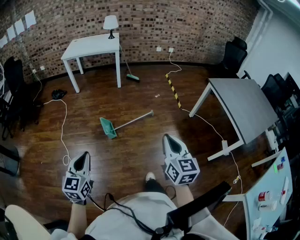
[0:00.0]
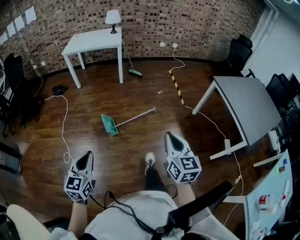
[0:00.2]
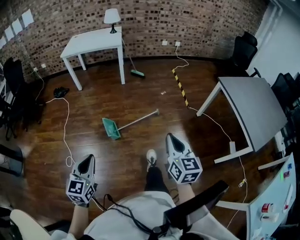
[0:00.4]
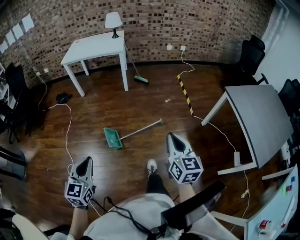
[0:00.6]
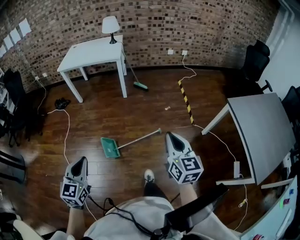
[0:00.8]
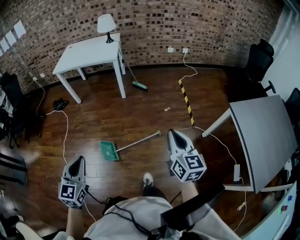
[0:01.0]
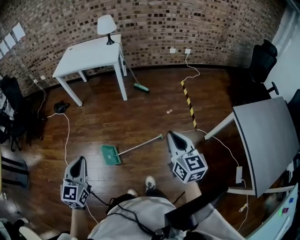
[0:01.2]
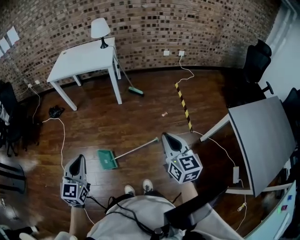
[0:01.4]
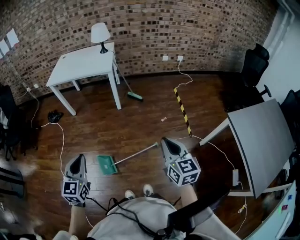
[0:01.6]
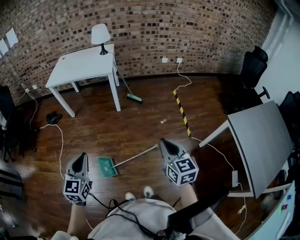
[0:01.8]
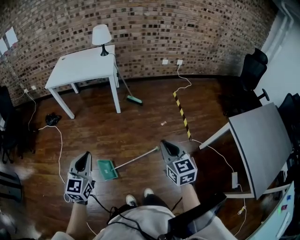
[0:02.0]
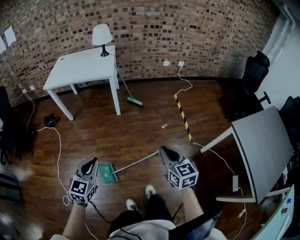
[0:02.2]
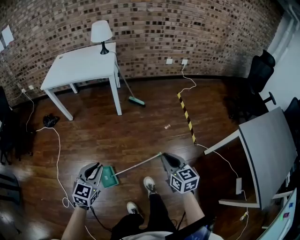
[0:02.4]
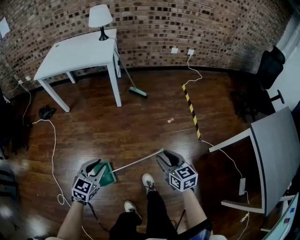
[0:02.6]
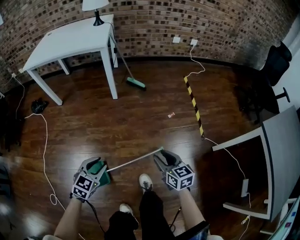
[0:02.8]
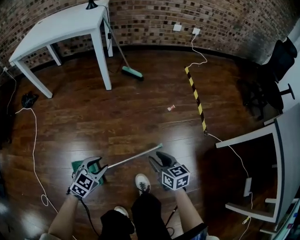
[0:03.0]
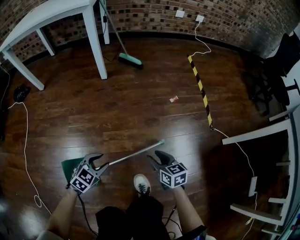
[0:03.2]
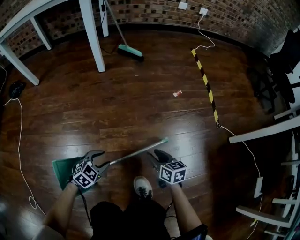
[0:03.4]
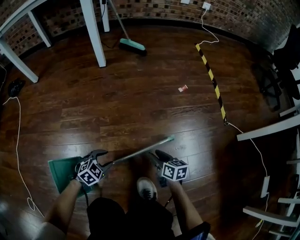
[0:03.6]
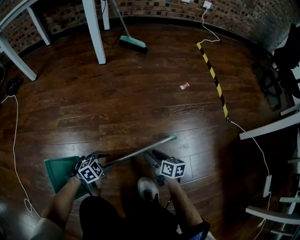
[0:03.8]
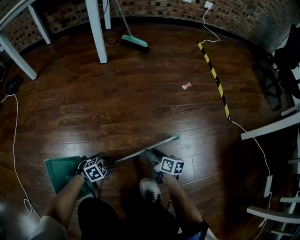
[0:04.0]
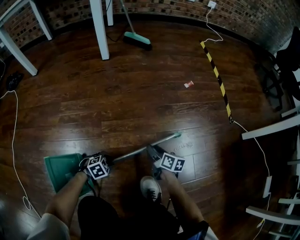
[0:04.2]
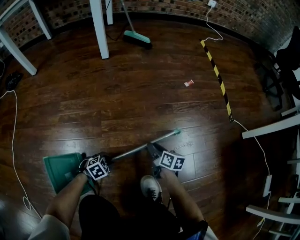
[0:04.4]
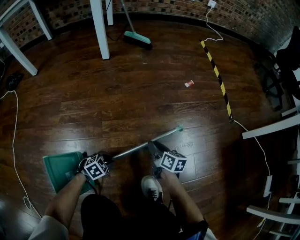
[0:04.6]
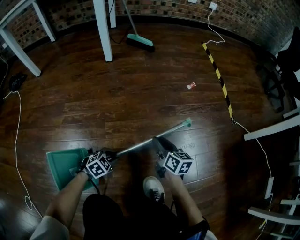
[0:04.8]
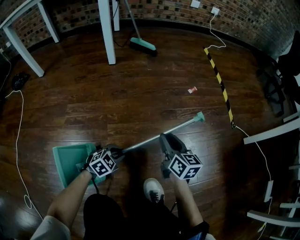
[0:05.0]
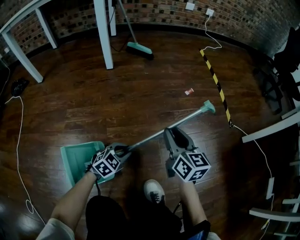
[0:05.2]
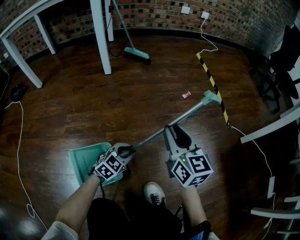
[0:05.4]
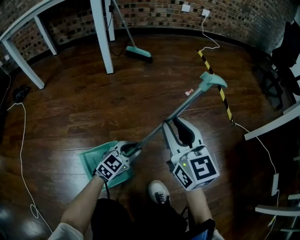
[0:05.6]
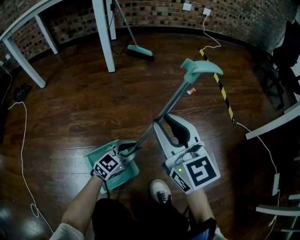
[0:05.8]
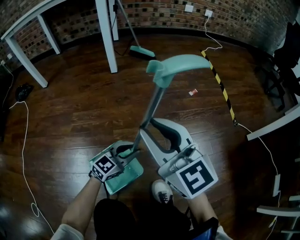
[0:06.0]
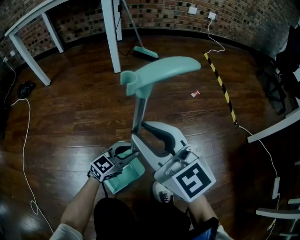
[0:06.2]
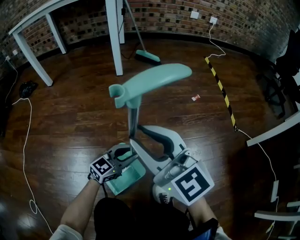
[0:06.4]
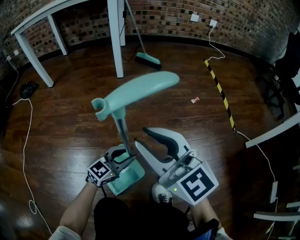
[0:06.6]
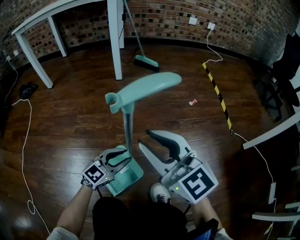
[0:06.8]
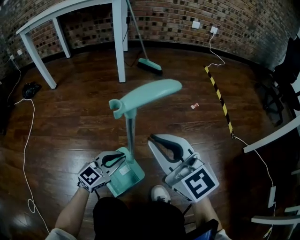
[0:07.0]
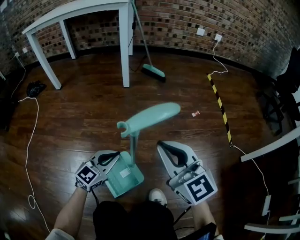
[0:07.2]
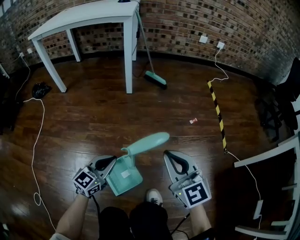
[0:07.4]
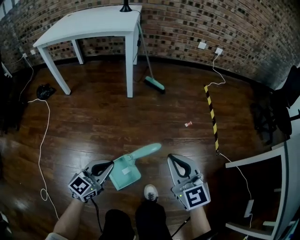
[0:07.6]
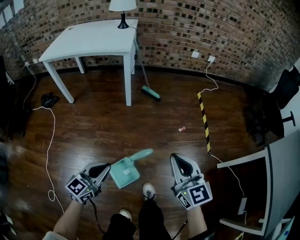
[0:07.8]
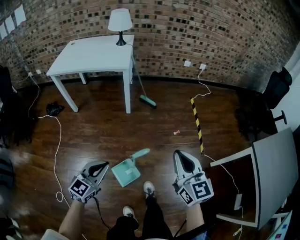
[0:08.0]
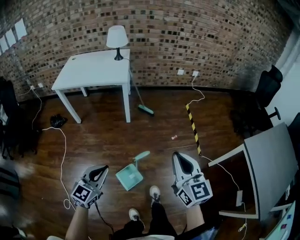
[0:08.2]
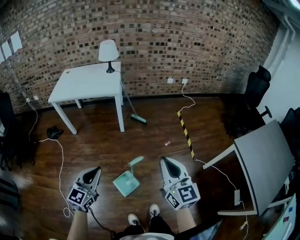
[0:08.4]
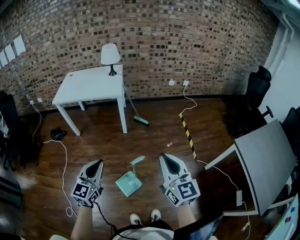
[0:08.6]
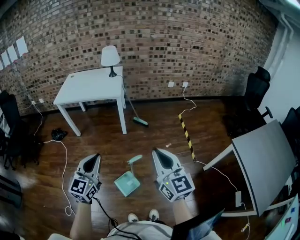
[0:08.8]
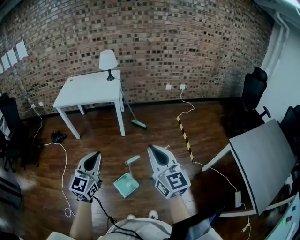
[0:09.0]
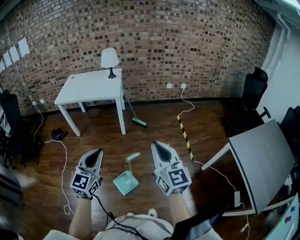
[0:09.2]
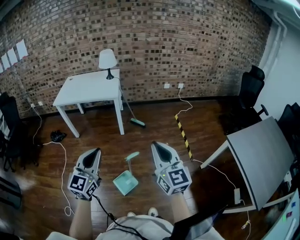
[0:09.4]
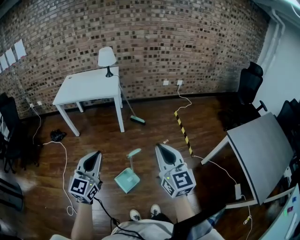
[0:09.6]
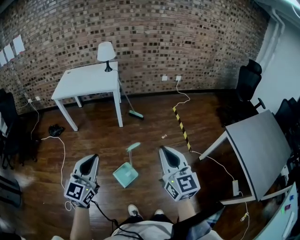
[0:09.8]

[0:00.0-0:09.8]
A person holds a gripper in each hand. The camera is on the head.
0:00.0 to 0:01.4: Both grippers are carried forward, approximately 50 cm.
0:01.4 to 0:02.8: The two grippers go roughly 40 cm downward and forward. The right gripper swivels about 20 degrees, and opens up. Meanwhile the left gripper swivels about 30 degrees, and opens.
0:02.8 to 0:04.2: Both grippers move downward, some 60 cm. The left gripper angles its fingers downward, by about 30 degrees; the right gripper swivels some 40 degrees.
0:04.2 to 0:05.6: The right gripper heads upward, covering about 35 cm, and twists about 50 degrees counterclockwise, seen from behind, while the left gripper moves upward and forward, roughly 25 cm, and points its fingers roughly 40 degrees further upward.
0:05.6 to 0:07.0: The right gripper travels to the left, backward and upward by some 15 cm, and rotates some 30 degrees. The left gripper travels upward, to the left and backward by some 15 cm.
0:07.0 to 0:08.4: Both grippers travel together upward, approximately 60 cm. The right gripper changes its angle by approximately 30 degrees; the left gripper turns by some 20 degrees.
0:08.4 to 0:09.8: The right gripper heads backward and upward, covering roughly 10 cm, while the left gripper shifts some 15 cm upward and backward.

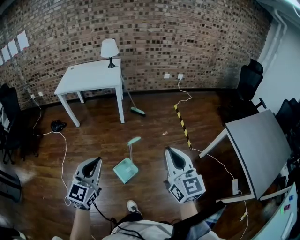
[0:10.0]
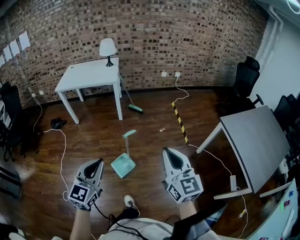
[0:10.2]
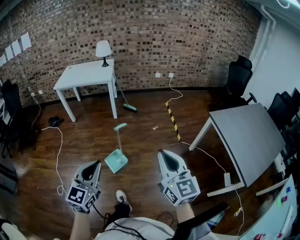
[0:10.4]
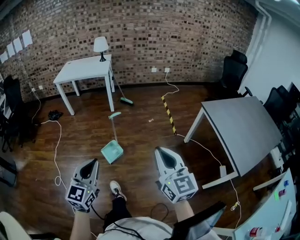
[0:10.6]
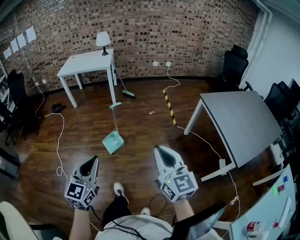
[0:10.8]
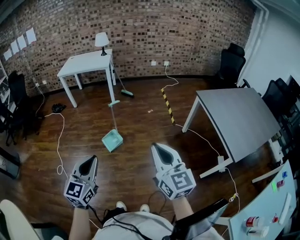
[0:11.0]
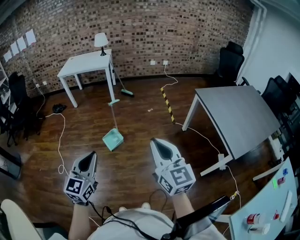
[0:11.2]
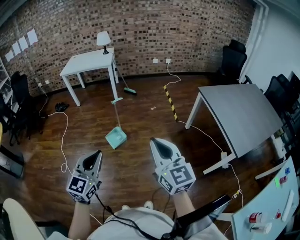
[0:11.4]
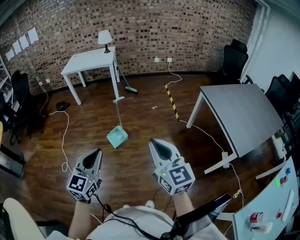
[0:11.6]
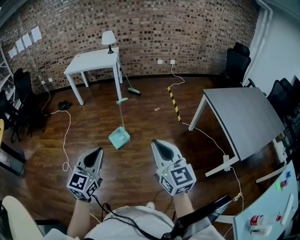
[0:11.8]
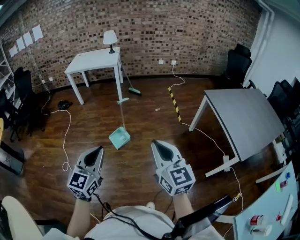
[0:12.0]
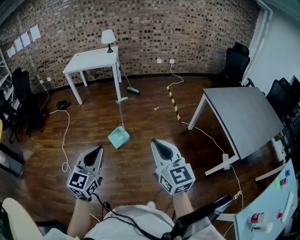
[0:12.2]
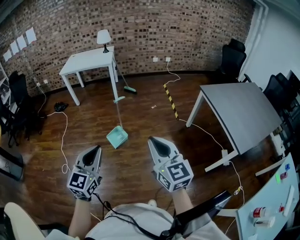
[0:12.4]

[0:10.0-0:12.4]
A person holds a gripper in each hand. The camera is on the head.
0:10.0 to 0:11.2: Both grippers are carried backward and to the right, roughly 40 cm.
0:11.2 to 0:12.4: The right gripper travels to the left by about 5 cm.

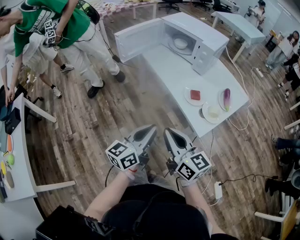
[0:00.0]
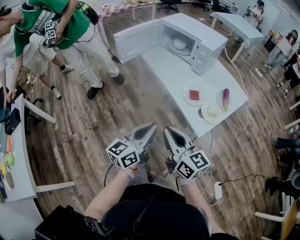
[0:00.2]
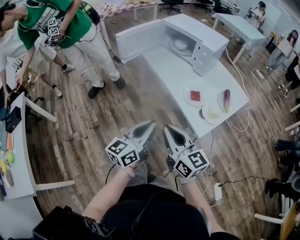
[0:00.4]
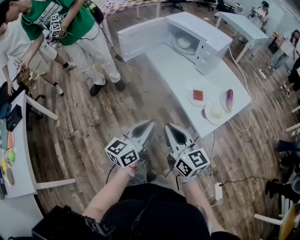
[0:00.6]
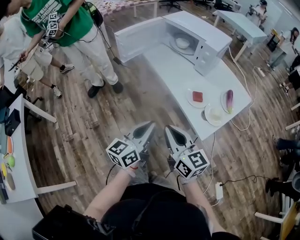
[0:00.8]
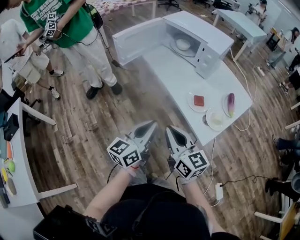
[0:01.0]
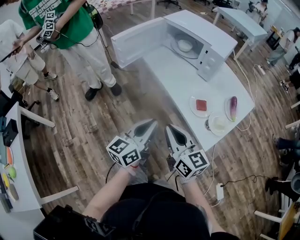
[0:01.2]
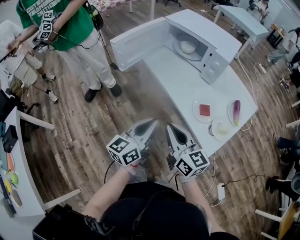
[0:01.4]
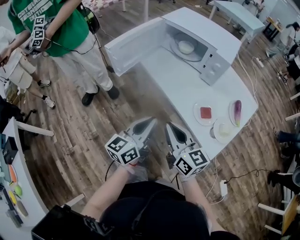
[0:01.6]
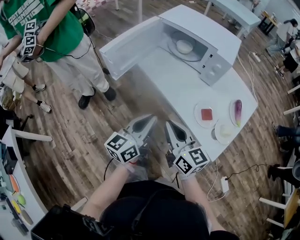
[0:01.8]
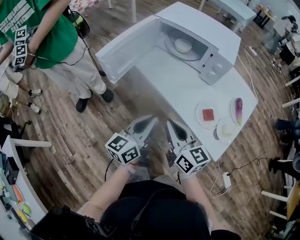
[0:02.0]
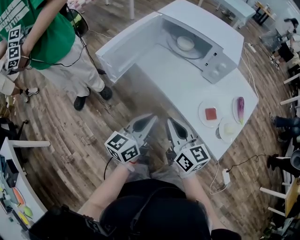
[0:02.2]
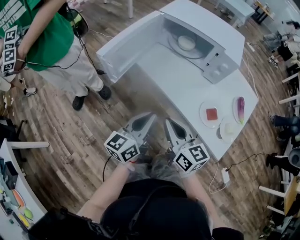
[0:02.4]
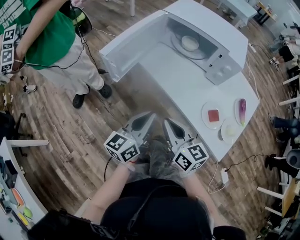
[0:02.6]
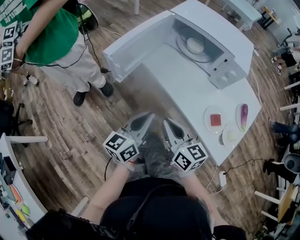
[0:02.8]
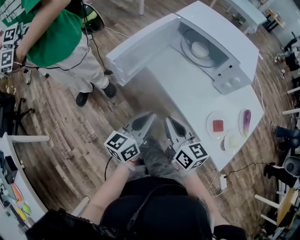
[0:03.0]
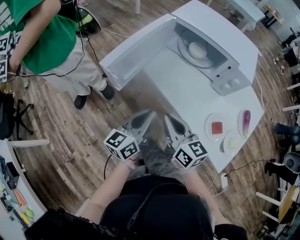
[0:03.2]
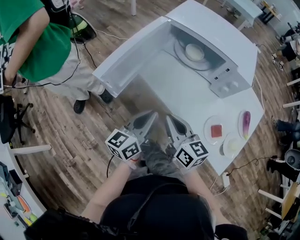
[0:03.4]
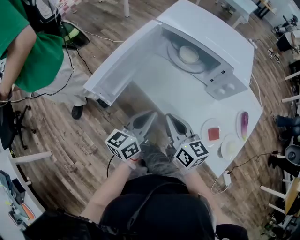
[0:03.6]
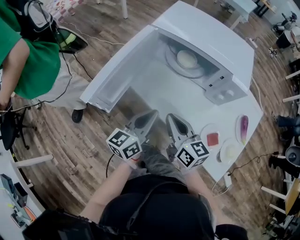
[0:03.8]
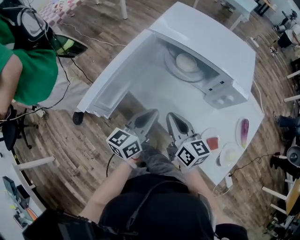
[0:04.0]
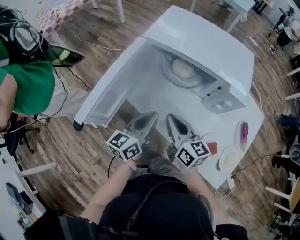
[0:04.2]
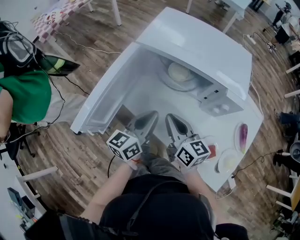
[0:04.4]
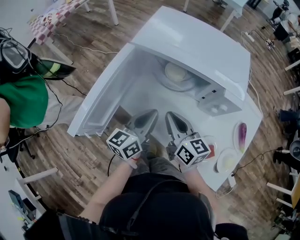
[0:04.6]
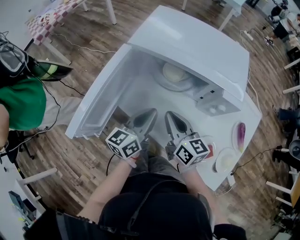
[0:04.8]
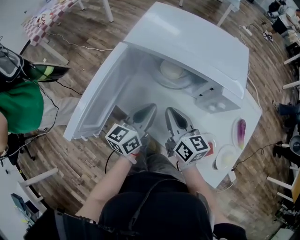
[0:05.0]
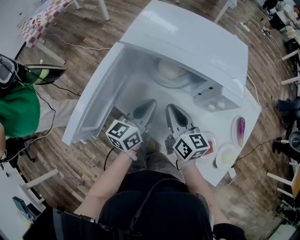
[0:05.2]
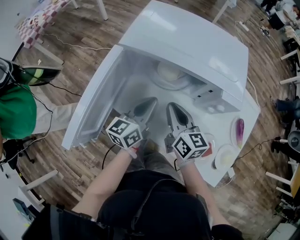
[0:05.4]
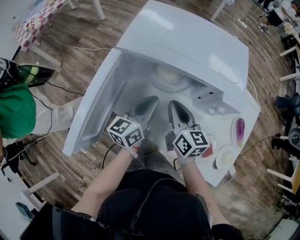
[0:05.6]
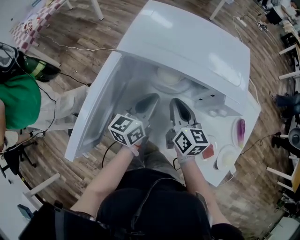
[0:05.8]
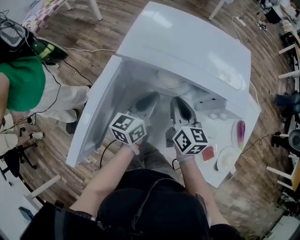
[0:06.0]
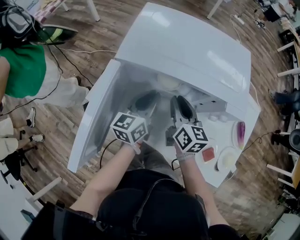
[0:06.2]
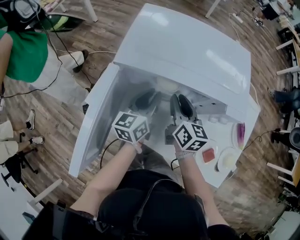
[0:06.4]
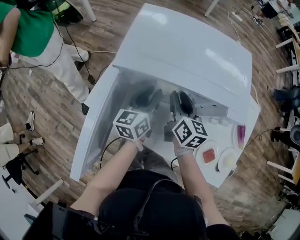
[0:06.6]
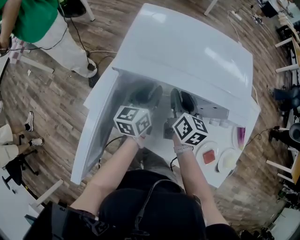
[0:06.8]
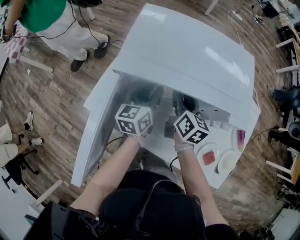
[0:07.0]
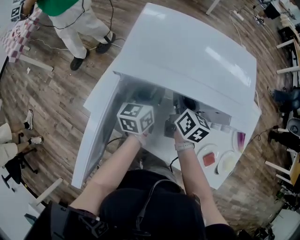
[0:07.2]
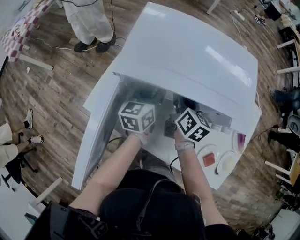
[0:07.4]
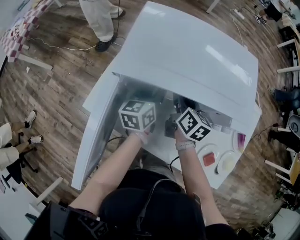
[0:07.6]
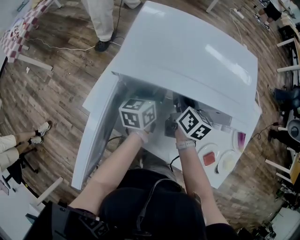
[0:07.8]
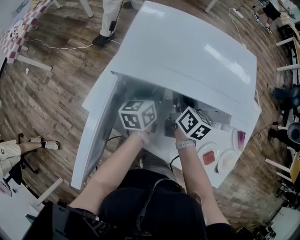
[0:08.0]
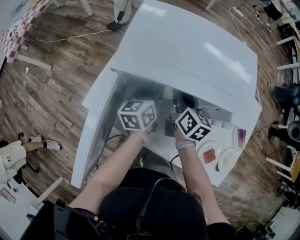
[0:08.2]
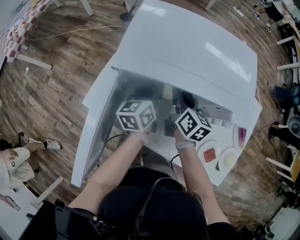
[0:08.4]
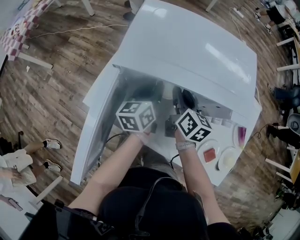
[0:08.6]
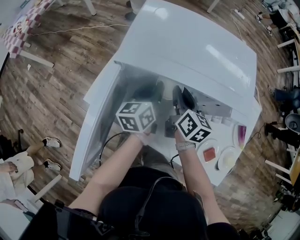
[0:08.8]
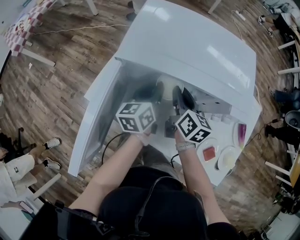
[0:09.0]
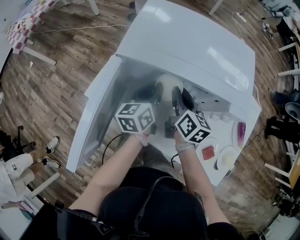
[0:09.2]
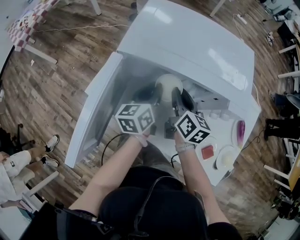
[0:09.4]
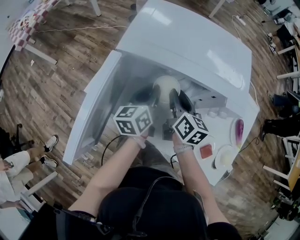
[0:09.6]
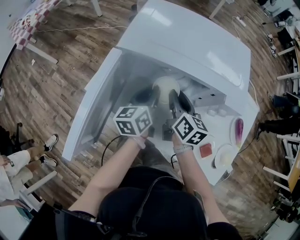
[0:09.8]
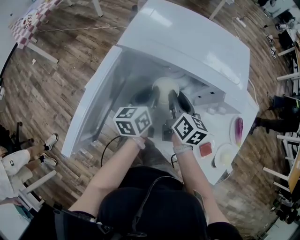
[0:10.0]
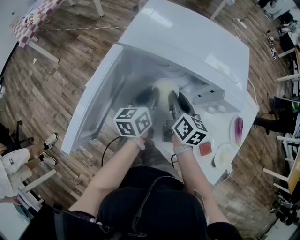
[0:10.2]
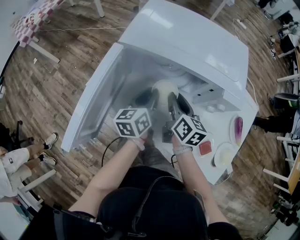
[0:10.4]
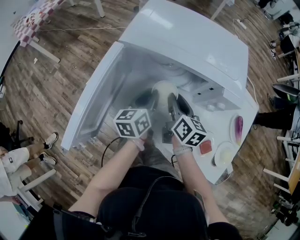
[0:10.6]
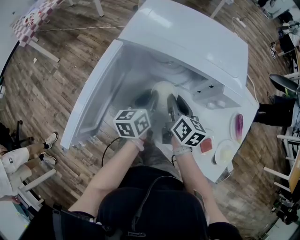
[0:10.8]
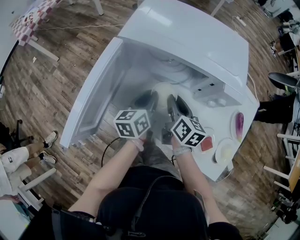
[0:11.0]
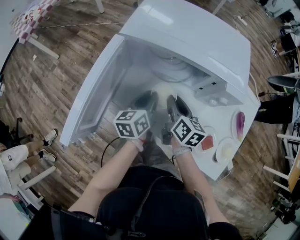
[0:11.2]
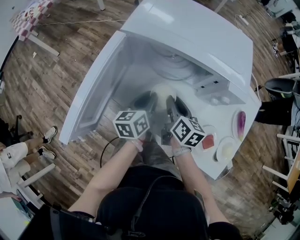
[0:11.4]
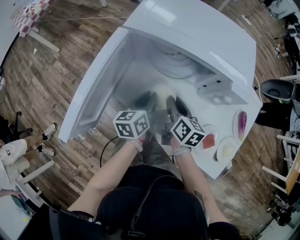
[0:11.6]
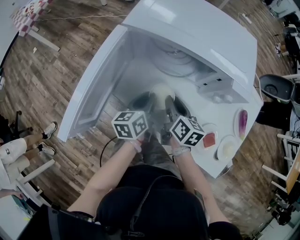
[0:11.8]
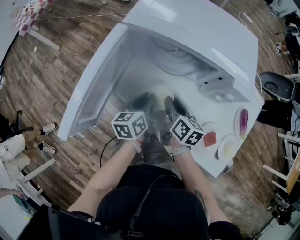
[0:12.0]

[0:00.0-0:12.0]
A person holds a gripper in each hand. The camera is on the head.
0:00.0 to 0:01.6: The grippers both shift forward by some 20 cm.
0:01.6 to 0:03.0: The left gripper moves forward and to the left, approximately 15 cm; the right gripper travels forward, to the left and downward by approximately 15 cm.
0:03.0 to 0:04.4: Both grippers move forward, roughly 20 cm.
0:04.4 to 0:06.0: Both grippers move forward, roughly 10 cm. The right gripper swivels approximately 20 degrees.
0:06.0 to 0:07.6: The two grippers go about 10 cm forward. The left gripper opens up. Meanwhile the right gripper opens up.
0:07.6 to 0:09.0: The grippers move only a little.
0:09.0 to 0:10.4: The grippers both shift backward by roughly 5 cm.
0:10.4 to 0:12.0: The right gripper goes roughly 10 cm downward and backward. The left gripper heads backward and downward, covering approximately 10 cm.
